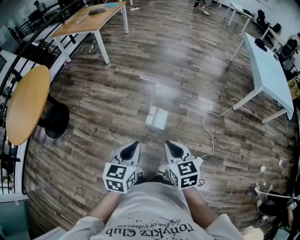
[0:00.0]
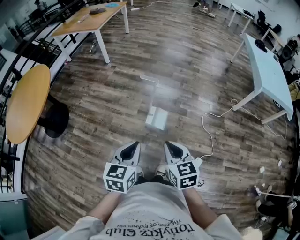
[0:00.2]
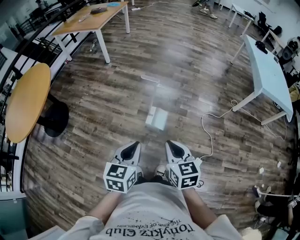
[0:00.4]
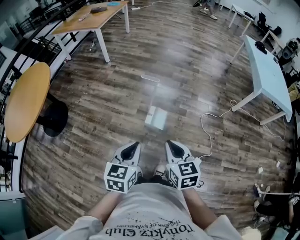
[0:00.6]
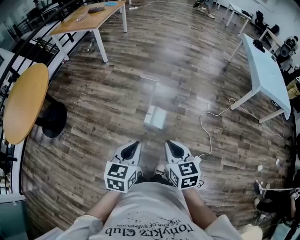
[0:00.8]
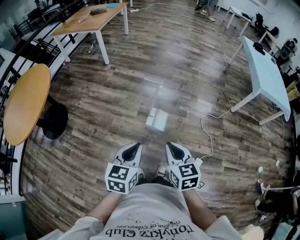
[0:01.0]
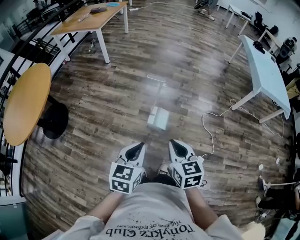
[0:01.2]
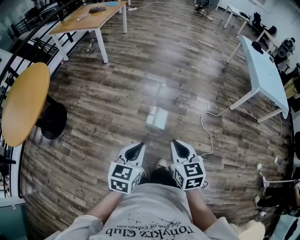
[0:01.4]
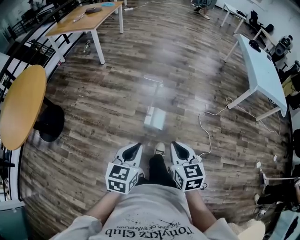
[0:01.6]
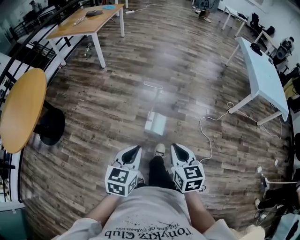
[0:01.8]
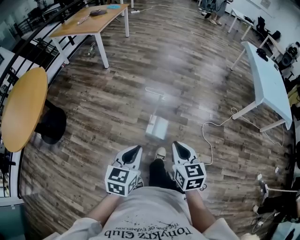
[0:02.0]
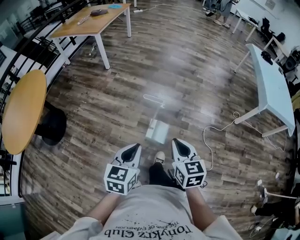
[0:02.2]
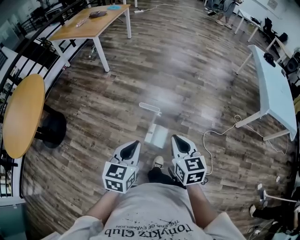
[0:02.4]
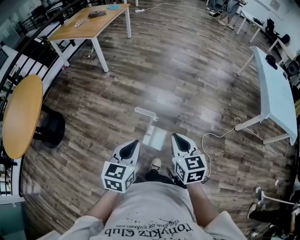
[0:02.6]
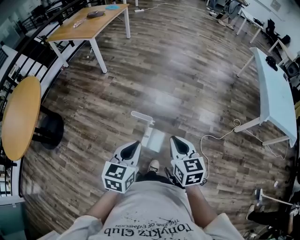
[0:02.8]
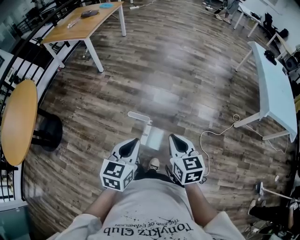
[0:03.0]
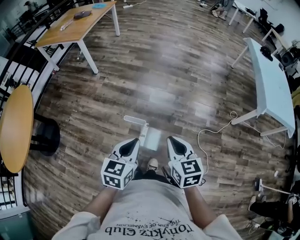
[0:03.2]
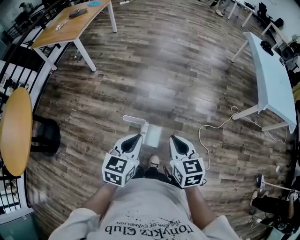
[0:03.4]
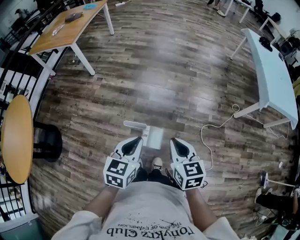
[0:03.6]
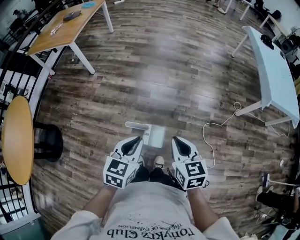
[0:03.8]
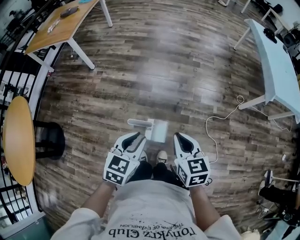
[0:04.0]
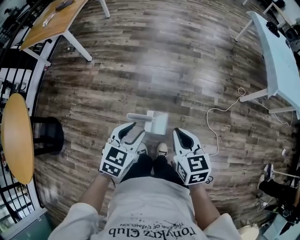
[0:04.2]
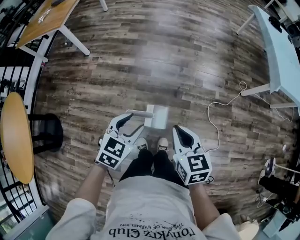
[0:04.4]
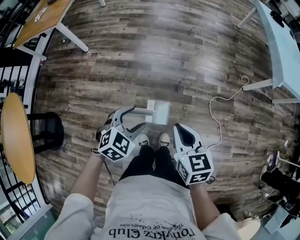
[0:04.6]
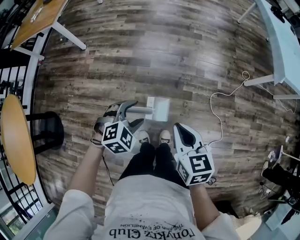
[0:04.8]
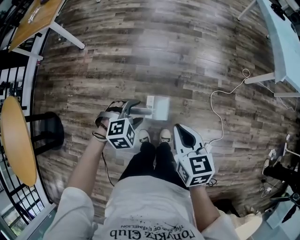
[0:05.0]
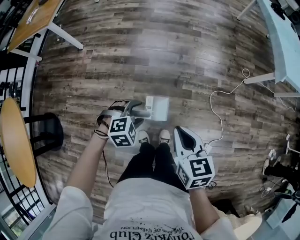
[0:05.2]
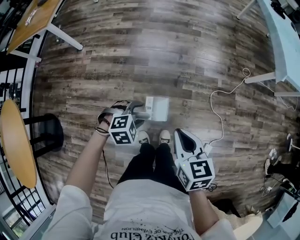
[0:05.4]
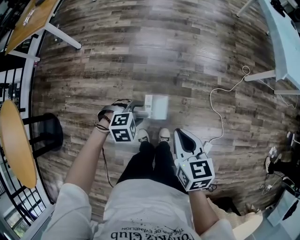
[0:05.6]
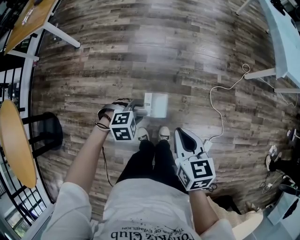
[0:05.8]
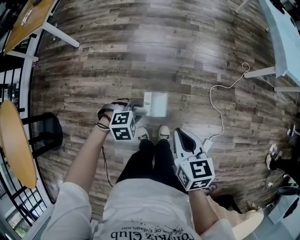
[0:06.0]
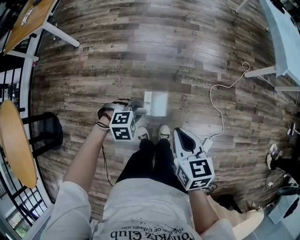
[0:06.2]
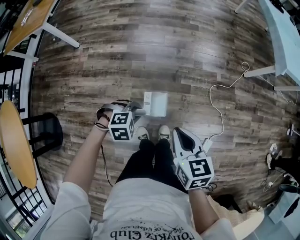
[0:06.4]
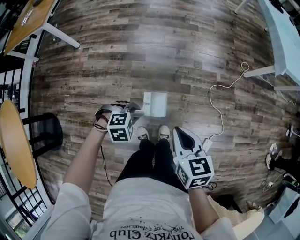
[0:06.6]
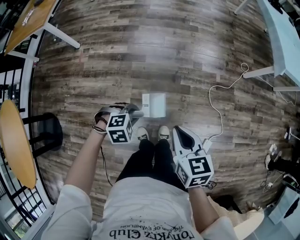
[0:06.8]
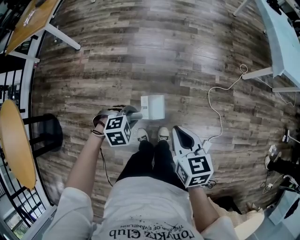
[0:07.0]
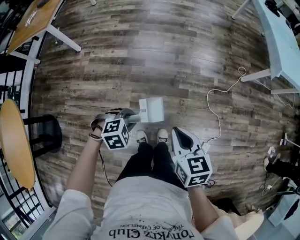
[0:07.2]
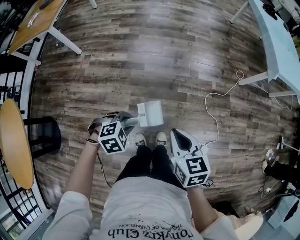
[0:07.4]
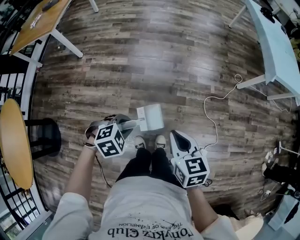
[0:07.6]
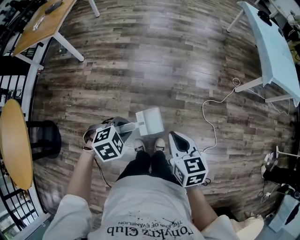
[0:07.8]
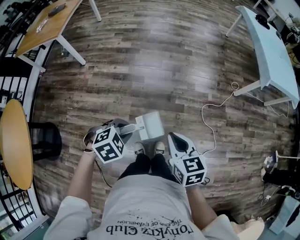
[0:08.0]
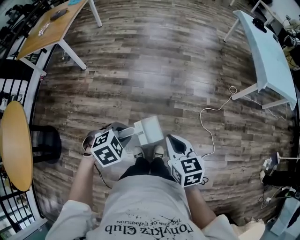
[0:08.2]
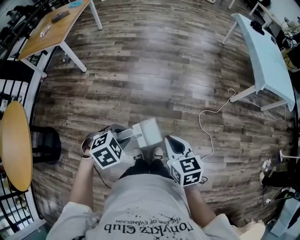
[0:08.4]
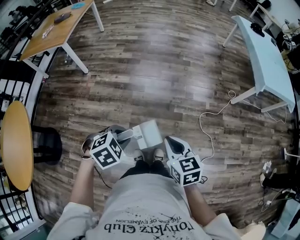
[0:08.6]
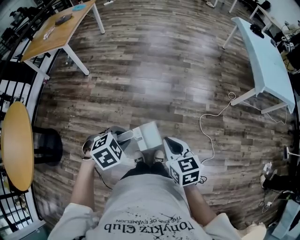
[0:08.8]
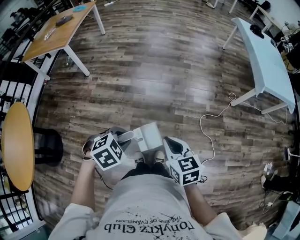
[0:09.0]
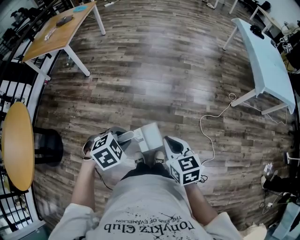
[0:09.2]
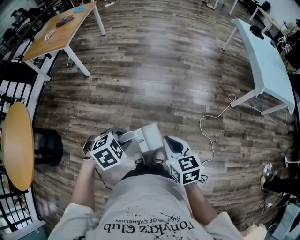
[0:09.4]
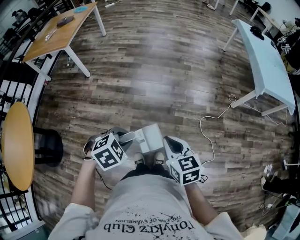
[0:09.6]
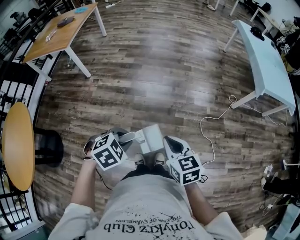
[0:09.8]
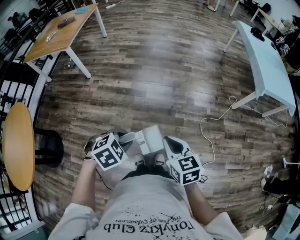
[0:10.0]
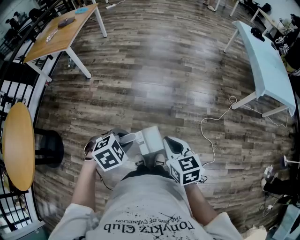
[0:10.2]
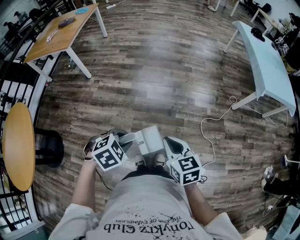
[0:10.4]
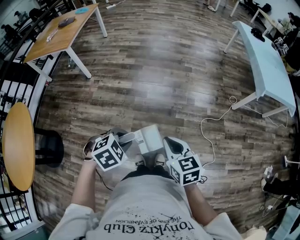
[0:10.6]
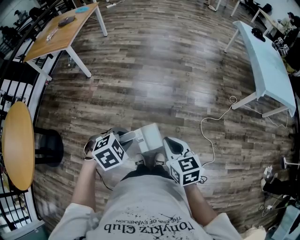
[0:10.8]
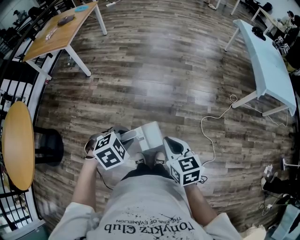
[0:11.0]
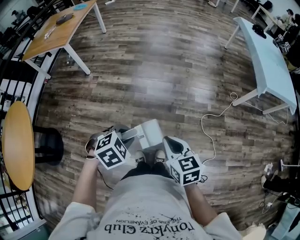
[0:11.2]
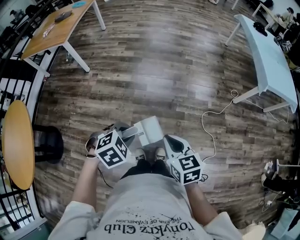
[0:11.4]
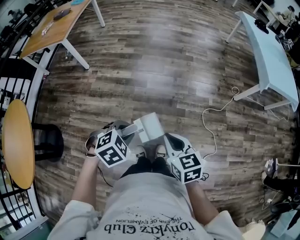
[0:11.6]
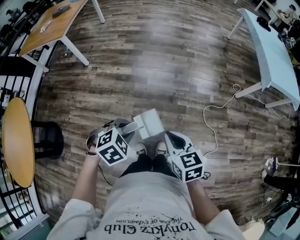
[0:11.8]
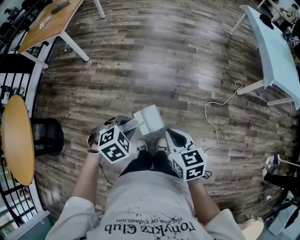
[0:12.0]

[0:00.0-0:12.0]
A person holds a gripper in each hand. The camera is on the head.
0:00.0 to 0:01.6: The left gripper heads to the left, covering about 5 cm.
0:01.6 to 0:03.0: Both grippers move forward, approximately 30 cm.
0:03.0 to 0:04.4: The right gripper travels forward and downward by roughly 10 cm, while the left gripper heads forward and downward, covering about 15 cm, swivels about 30 degrees, and opens.
0:04.4 to 0:06.0: The left gripper goes about 15 cm downward, and changes its angle by roughly 60 degrees; the right gripper heads downward, covering roughly 5 cm.
0:06.0 to 0:07.6: The left gripper heads upward and backward, covering approximately 10 cm.
0:07.6 to 0:09.0: The right gripper goes approximately 5 cm upward. Meanwhile the left gripper goes roughly 15 cm upward and backward.
0:09.0 to 0:10.4: Both grippers stay about where they are.
0:10.4 to 0:12.0: The left gripper shifts about 5 cm downward.

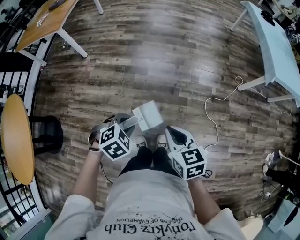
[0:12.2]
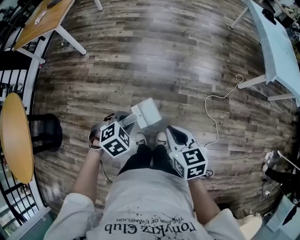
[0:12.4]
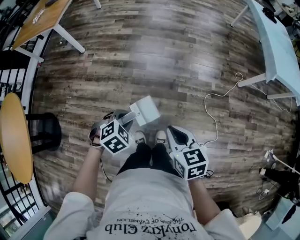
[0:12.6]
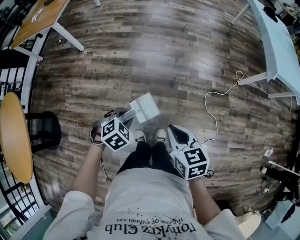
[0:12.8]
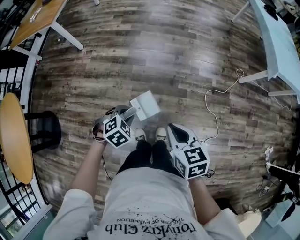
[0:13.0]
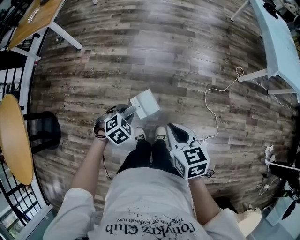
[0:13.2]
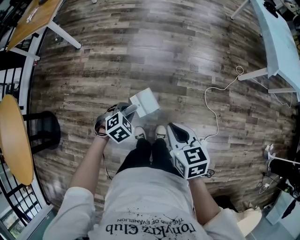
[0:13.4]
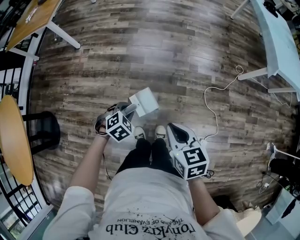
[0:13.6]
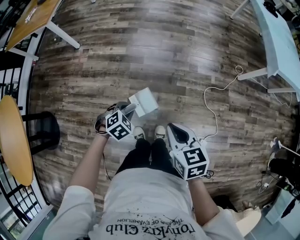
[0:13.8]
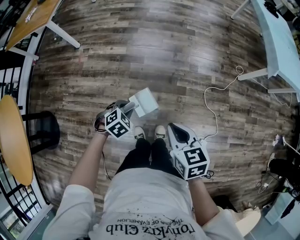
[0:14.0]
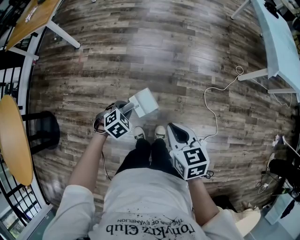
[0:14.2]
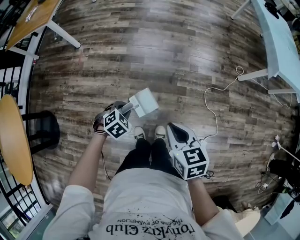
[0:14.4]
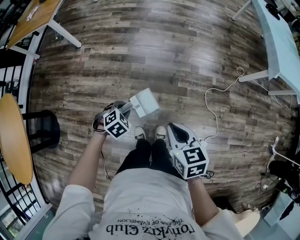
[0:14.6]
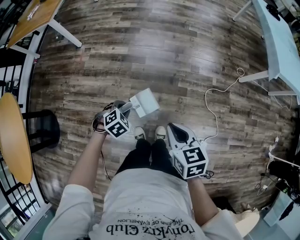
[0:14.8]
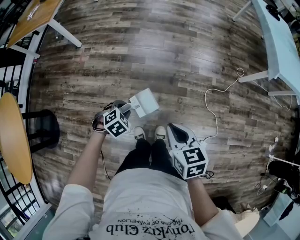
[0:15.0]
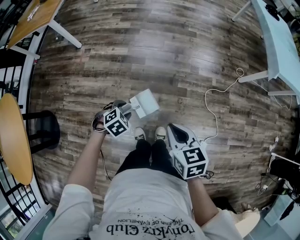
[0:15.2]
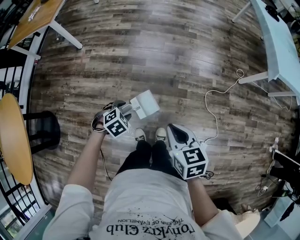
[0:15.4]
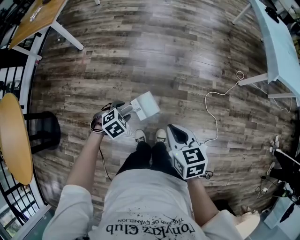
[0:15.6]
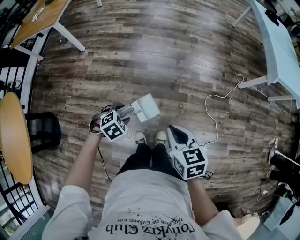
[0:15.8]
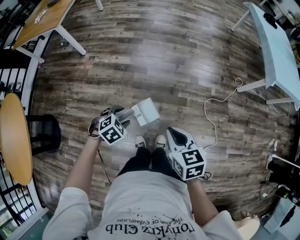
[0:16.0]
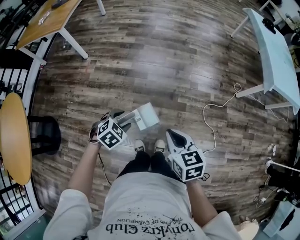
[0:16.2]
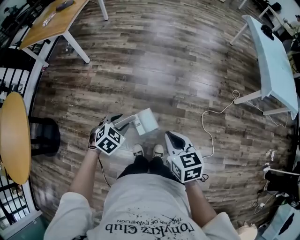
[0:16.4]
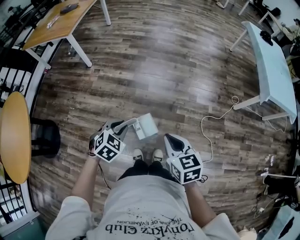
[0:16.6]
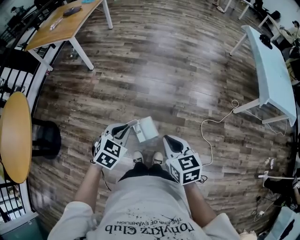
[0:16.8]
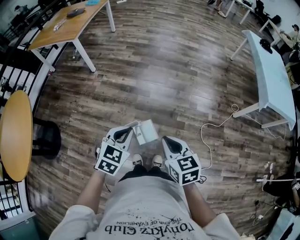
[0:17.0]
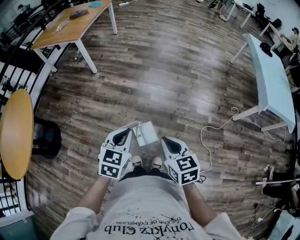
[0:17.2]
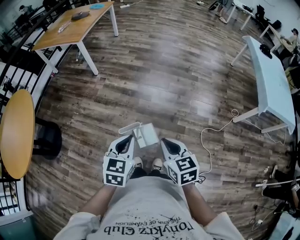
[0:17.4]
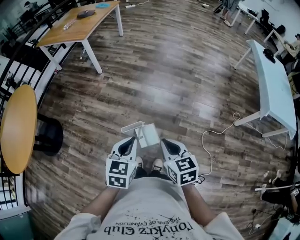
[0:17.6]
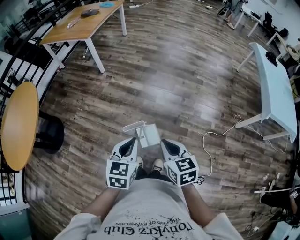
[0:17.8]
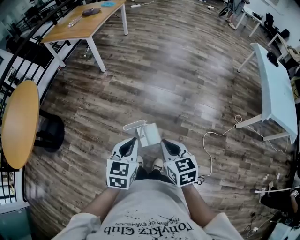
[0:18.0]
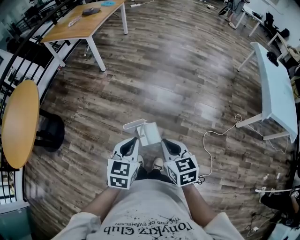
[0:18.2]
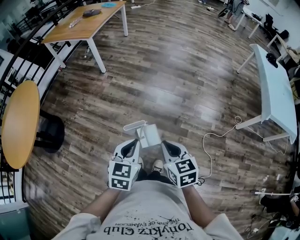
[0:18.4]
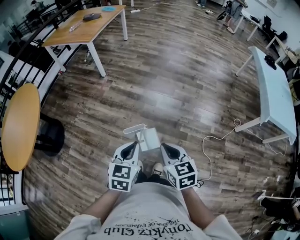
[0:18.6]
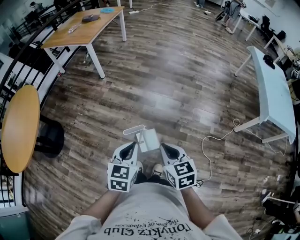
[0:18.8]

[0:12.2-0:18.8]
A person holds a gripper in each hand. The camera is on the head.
0:12.2 to 0:13.8: The left gripper travels downward and forward by about 15 cm.
0:13.8 to 0:15.4: The left gripper opens.
0:15.4 to 0:17.2: The left gripper is displaced upward by some 25 cm, tips its fingers upward by roughly 40 degrees, and closes up, while the right gripper moves upward, about 10 cm.
0:17.2 to 0:18.8: The left gripper moves backward, some 5 cm.

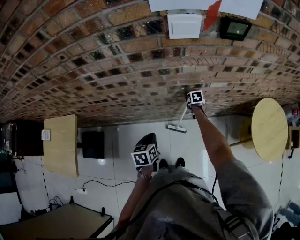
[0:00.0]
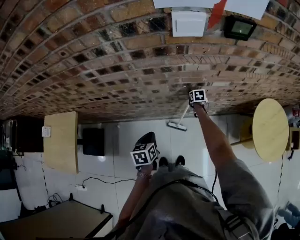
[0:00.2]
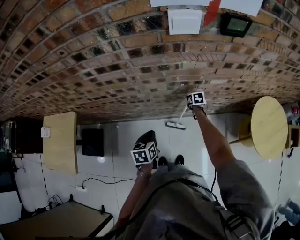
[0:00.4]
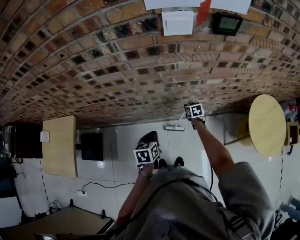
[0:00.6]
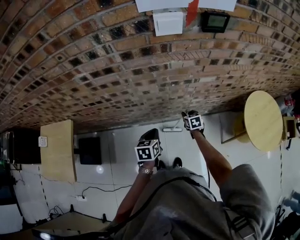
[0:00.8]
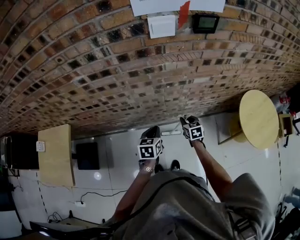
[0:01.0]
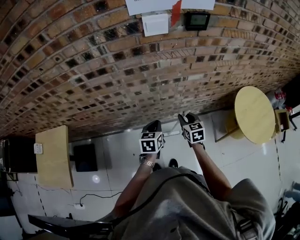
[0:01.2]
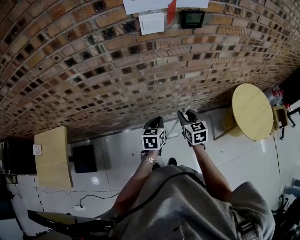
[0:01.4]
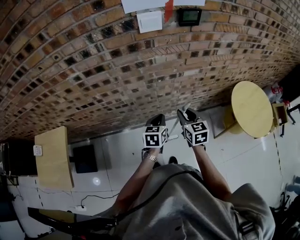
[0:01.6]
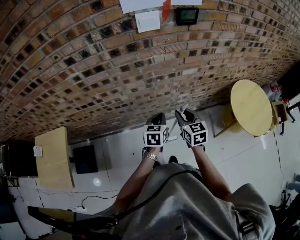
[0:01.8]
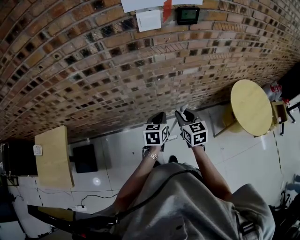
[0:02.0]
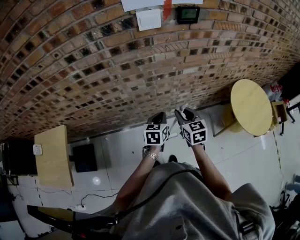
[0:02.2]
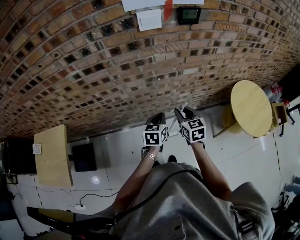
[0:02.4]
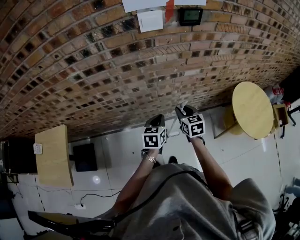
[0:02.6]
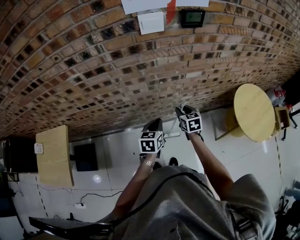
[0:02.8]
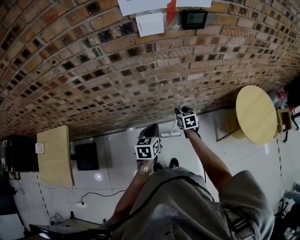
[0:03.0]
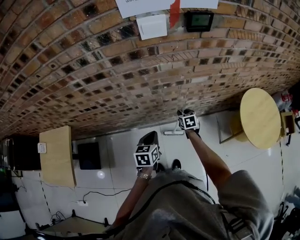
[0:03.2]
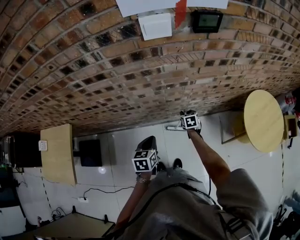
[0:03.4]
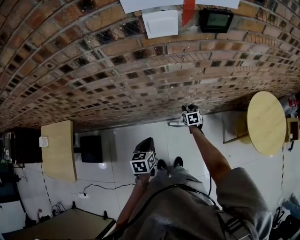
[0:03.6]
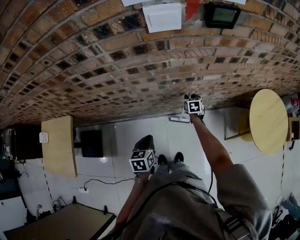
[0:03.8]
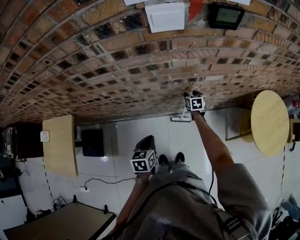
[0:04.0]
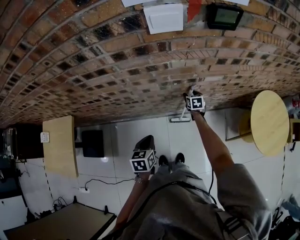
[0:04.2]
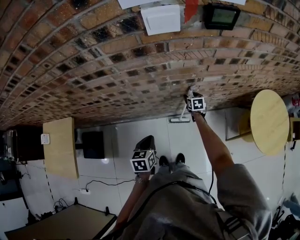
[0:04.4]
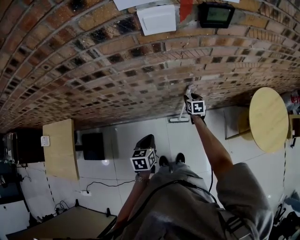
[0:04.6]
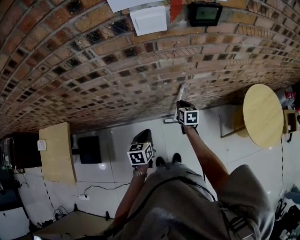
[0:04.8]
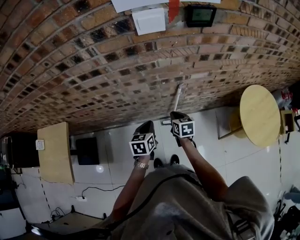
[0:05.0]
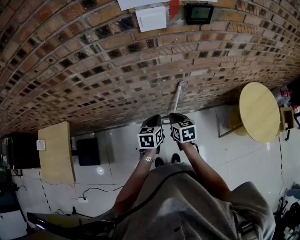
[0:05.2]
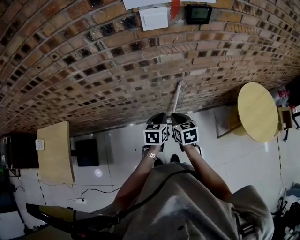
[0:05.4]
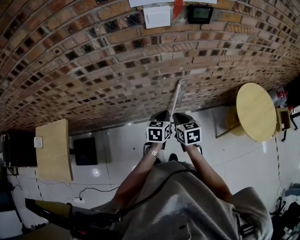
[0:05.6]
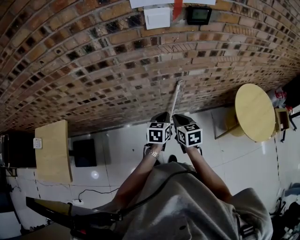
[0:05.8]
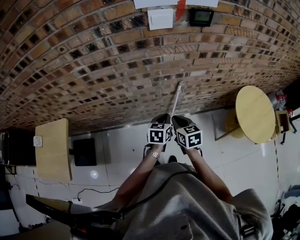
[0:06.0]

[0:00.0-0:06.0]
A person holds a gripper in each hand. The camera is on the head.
0:00.0 to 0:01.6: The left gripper moves to the right and upward, roughly 15 cm, and changes its angle by roughly 20 degrees. Meanwhile the right gripper moves upward and backward, roughly 35 cm, and points its fingers about 40 degrees further upward.
0:01.6 to 0:03.0: The right gripper moves downward and forward, some 20 cm.
0:03.0 to 0:04.4: The right gripper travels forward and downward by about 20 cm, and opens. Meanwhile the left gripper is displaced to the left and downward by some 10 cm.
0:04.4 to 0:06.0: The right gripper shifts about 35 cm backward and upward, and closes. Meanwhile the left gripper travels to the right by about 10 cm.
